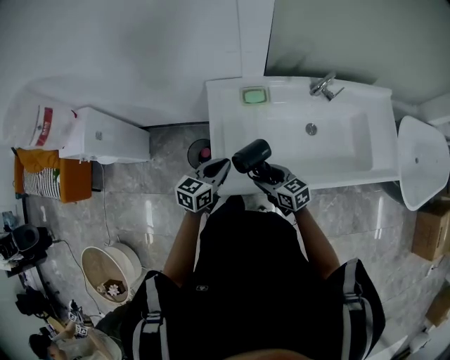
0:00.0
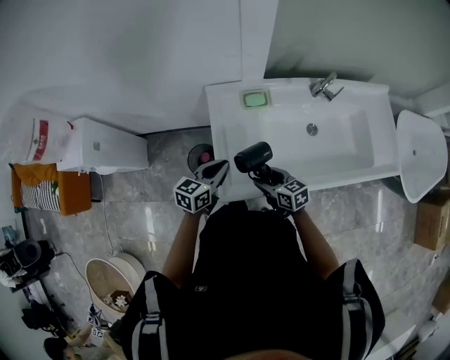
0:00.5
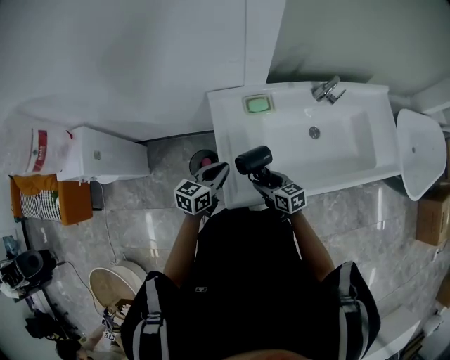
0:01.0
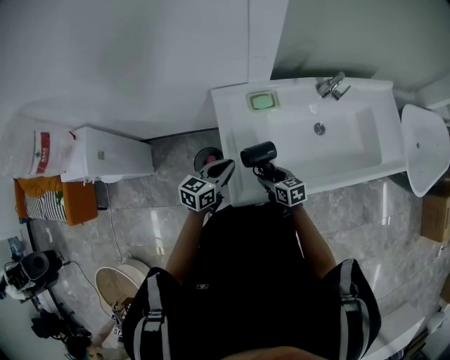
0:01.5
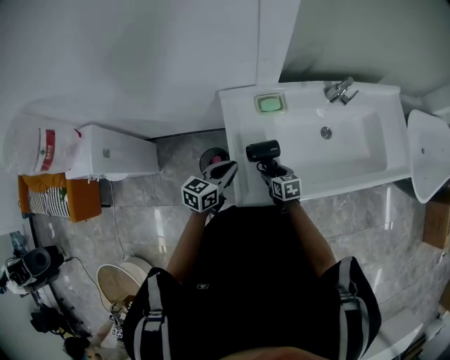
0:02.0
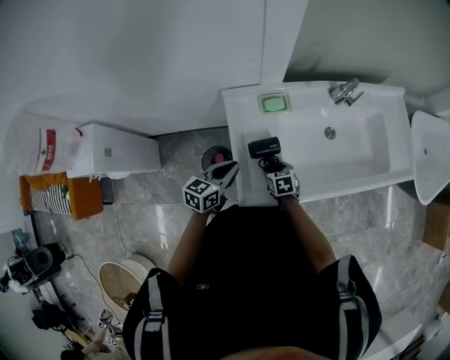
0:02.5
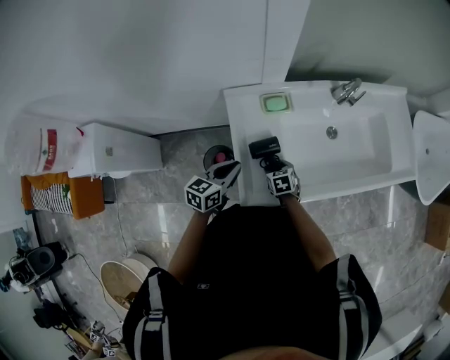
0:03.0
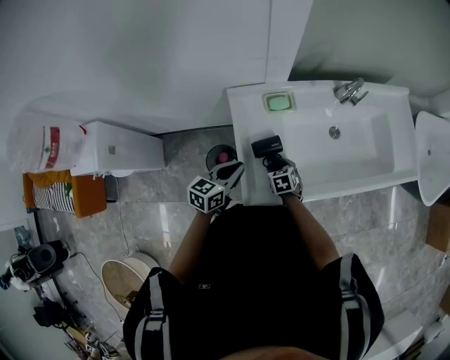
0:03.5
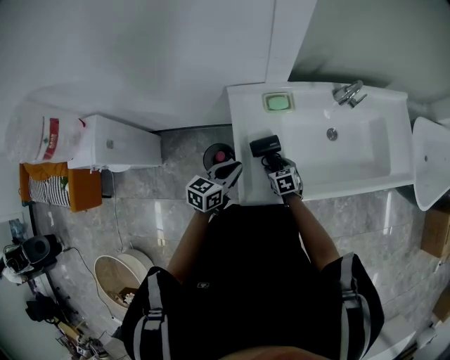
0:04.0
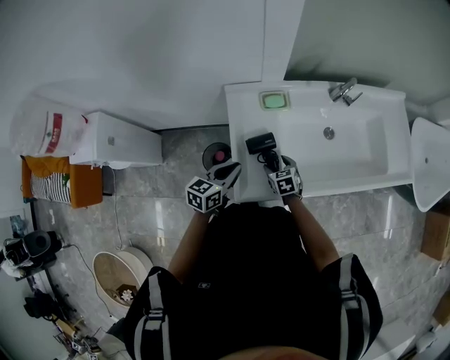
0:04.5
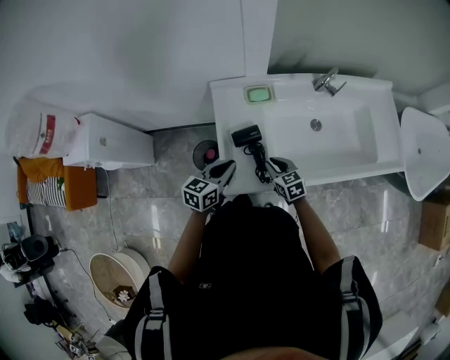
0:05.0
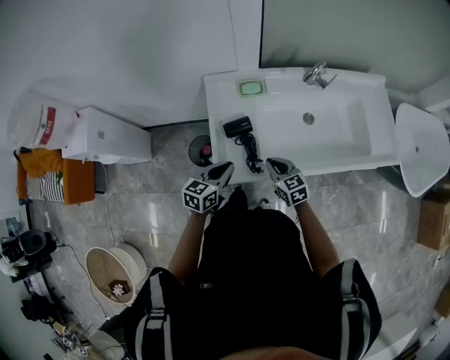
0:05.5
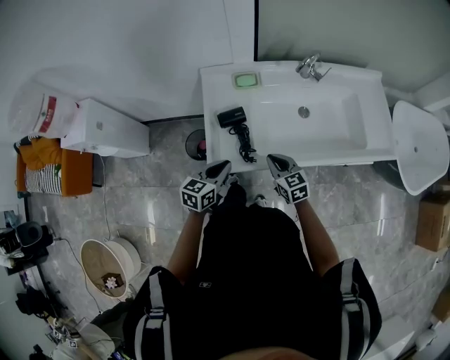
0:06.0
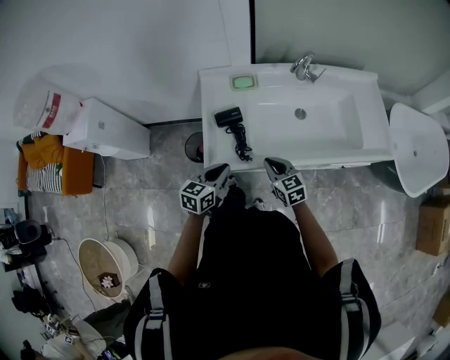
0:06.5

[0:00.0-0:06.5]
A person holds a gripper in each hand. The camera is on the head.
0:00.0 to 0:02.0: The right gripper is displaced downward and forward by approximately 15 cm, and rotates about 30 degrees. The left gripper shifts approximately 5 cm to the left.
0:04.5 to 0:06.5: The left gripper moves backward and to the right, about 15 cm, while the right gripper travels upward, backward and to the right by about 20 cm, swivels roughly 20 degrees, and closes.

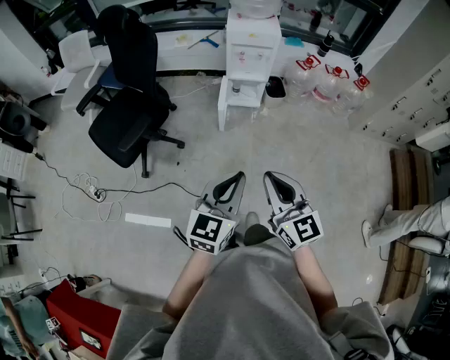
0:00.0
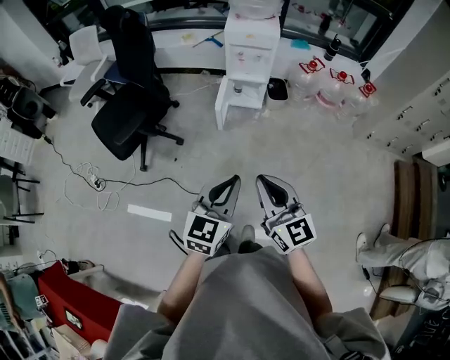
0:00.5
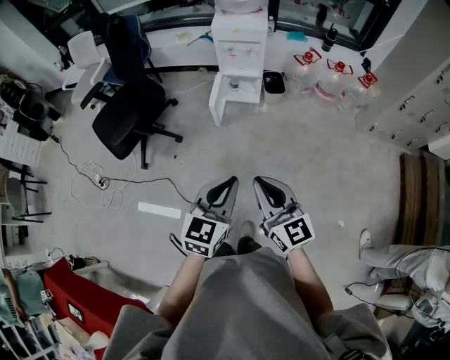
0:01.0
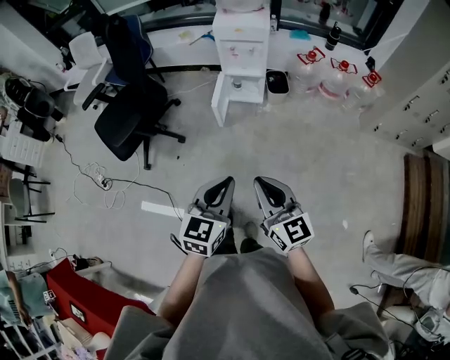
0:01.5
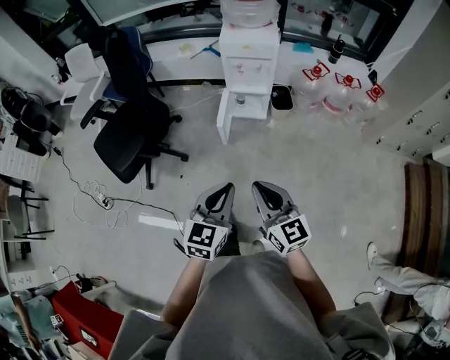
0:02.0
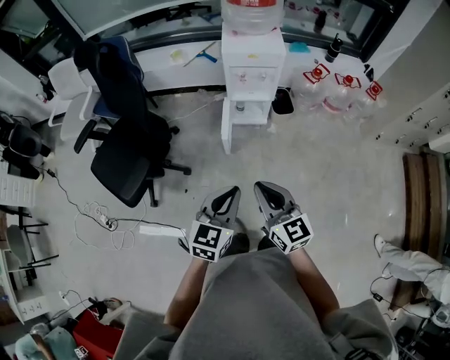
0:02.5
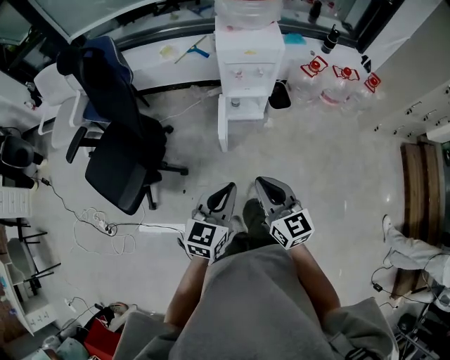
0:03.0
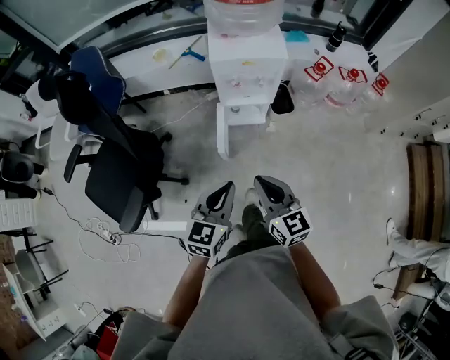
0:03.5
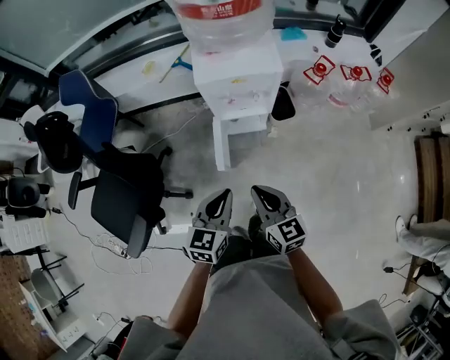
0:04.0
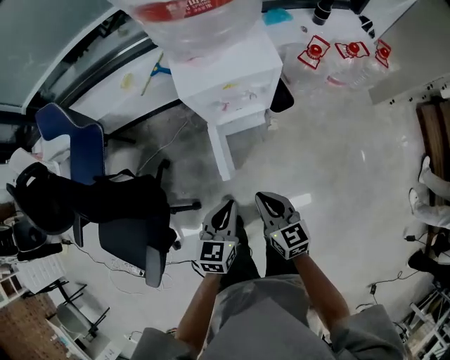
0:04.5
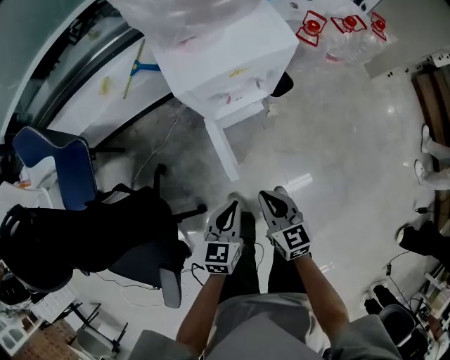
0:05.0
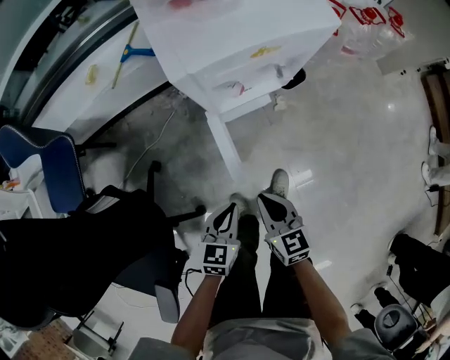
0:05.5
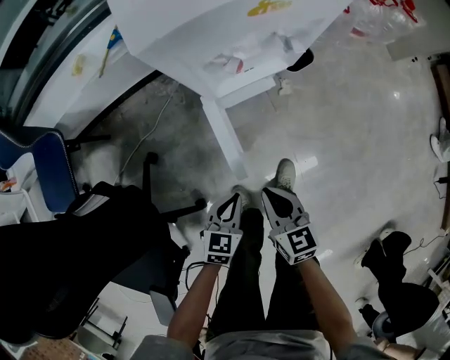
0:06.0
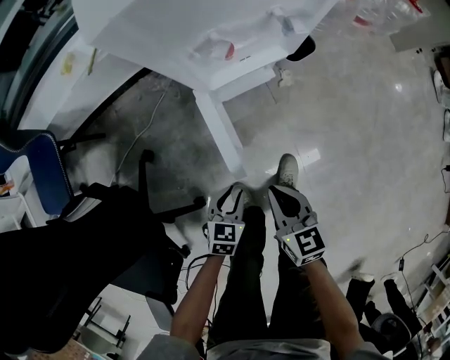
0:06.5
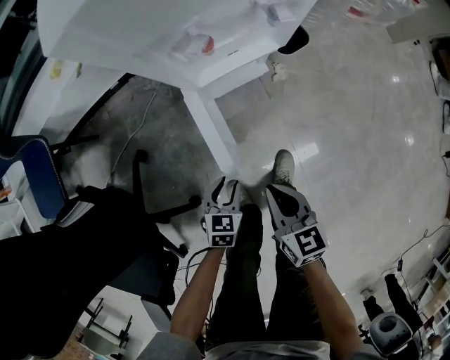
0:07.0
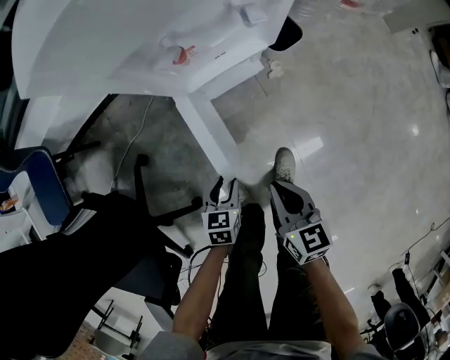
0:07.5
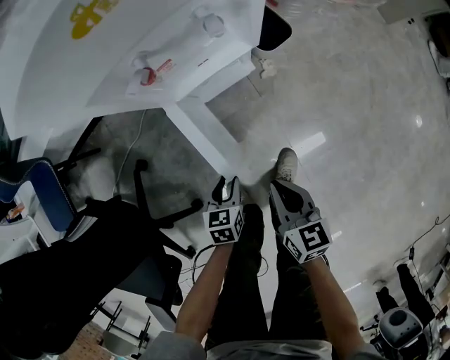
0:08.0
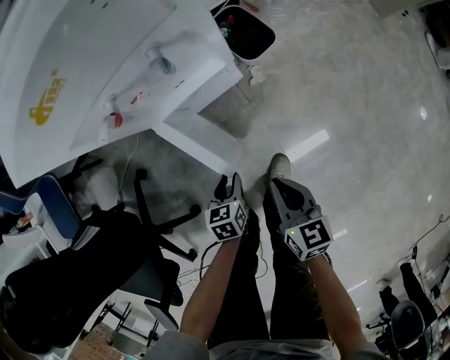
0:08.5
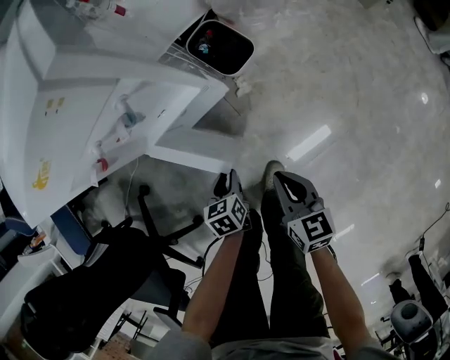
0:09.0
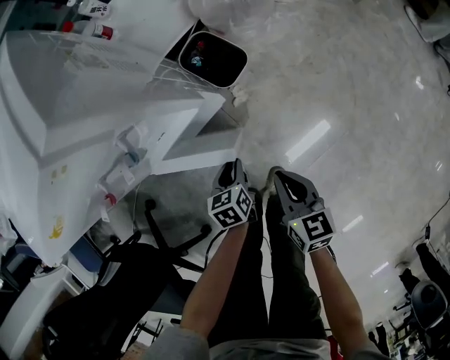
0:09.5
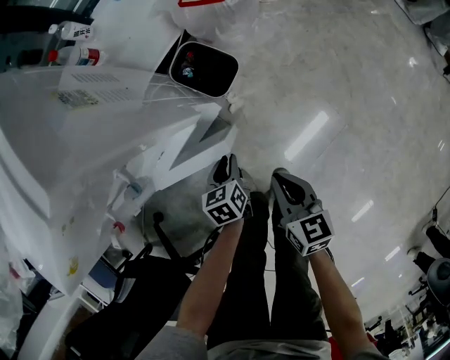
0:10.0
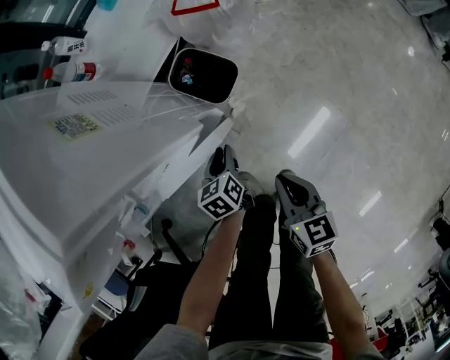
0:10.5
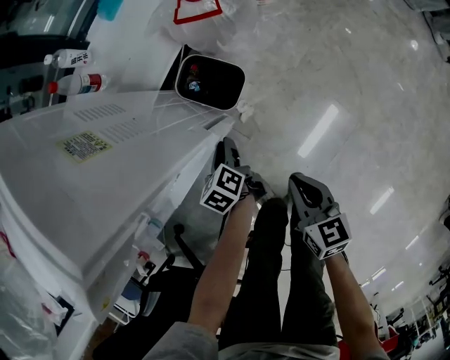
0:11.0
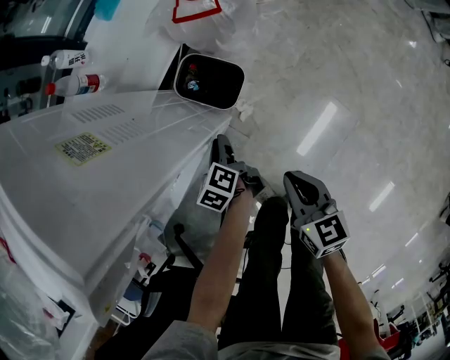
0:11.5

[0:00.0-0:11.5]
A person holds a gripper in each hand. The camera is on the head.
0:00.0 to 0:02.0: Both grippers move forward and to the right, approximately 15 cm.
0:02.0 to 0:04.0: The grippers both shift forward by about 35 cm.
0:04.0 to 0:06.0: The grippers both shift downward by about 35 cm. The right gripper swivels some 20 degrees, while the left gripper changes its angle by about 30 degrees.
0:06.0 to 0:07.5: The right gripper goes about 5 cm to the right. Meanwhile the left gripper is displaced downward by some 10 cm, and opens.
0:07.5 to 0:09.5: The two grippers go some 25 cm to the right and forward.
0:09.5 to 0:11.5: The left gripper moves forward, some 15 cm, and swivels about 30 degrees; the right gripper moves forward, approximately 5 cm.

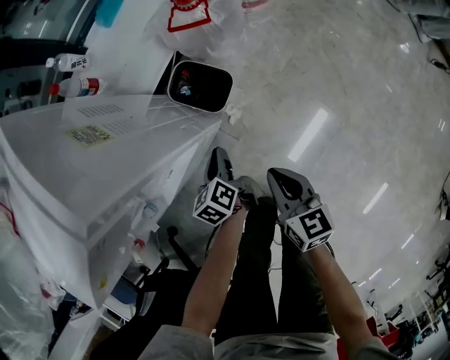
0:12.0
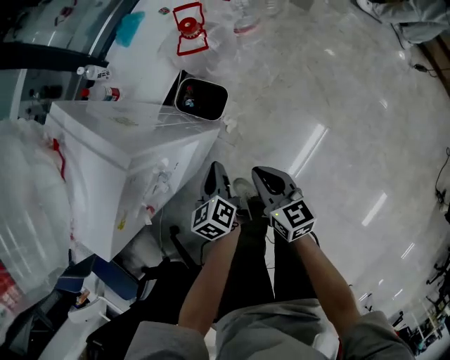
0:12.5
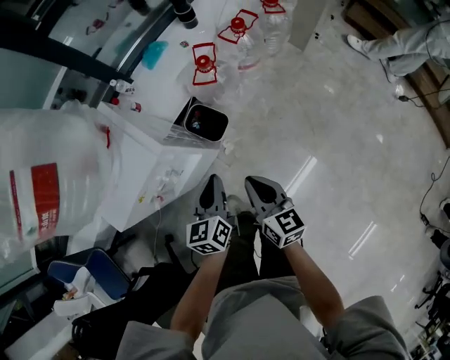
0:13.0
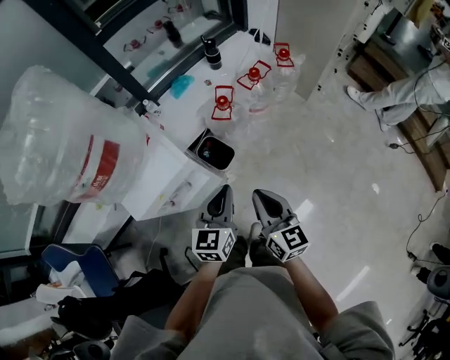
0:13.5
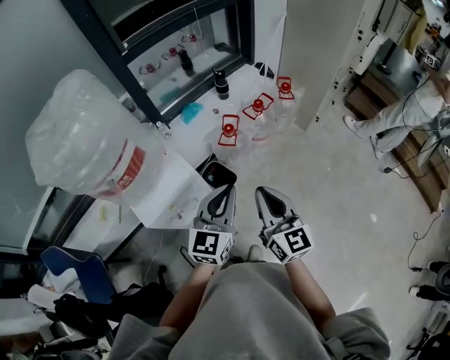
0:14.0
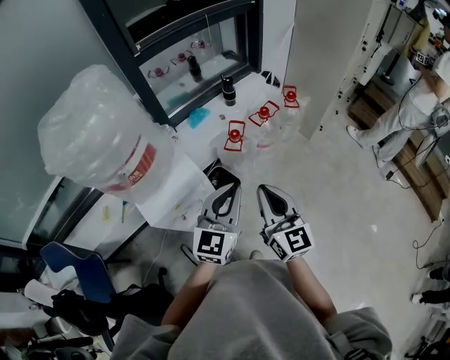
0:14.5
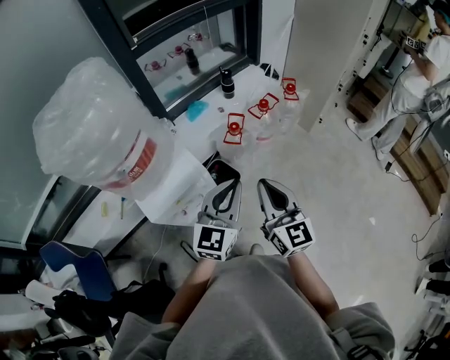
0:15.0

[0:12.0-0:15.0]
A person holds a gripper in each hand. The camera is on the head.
0:12.0 to 0:13.5: Both grippers move upward, approximately 50 cm. The right gripper turns by some 20 degrees; the left gripper changes its angle by roughly 50 degrees.
0:13.5 to 0:15.0: The grippers both shift upward by about 15 cm. The left gripper swivels some 20 degrees.

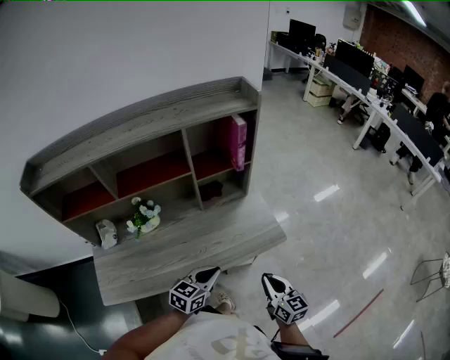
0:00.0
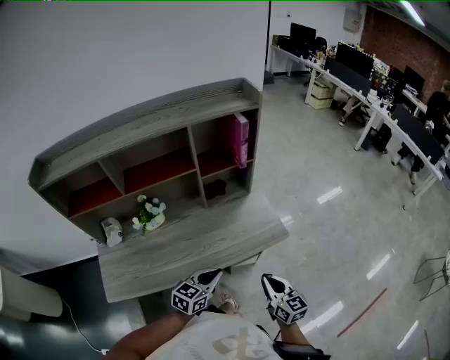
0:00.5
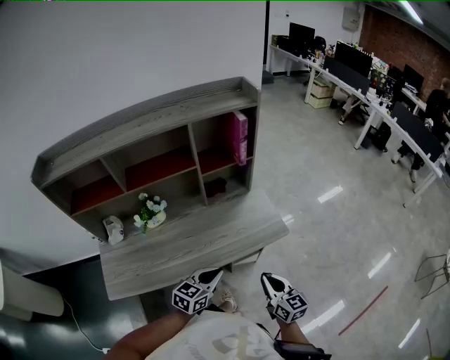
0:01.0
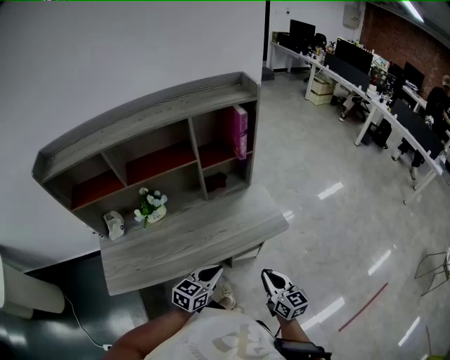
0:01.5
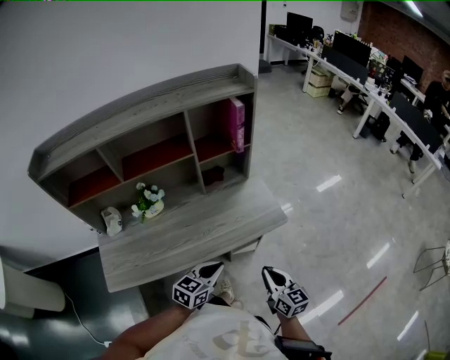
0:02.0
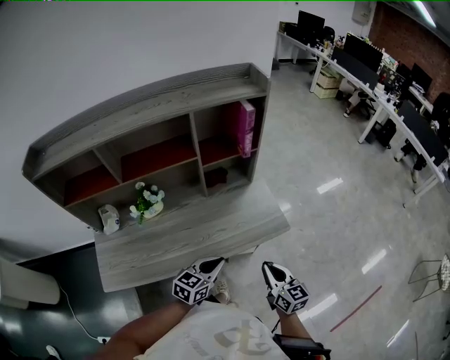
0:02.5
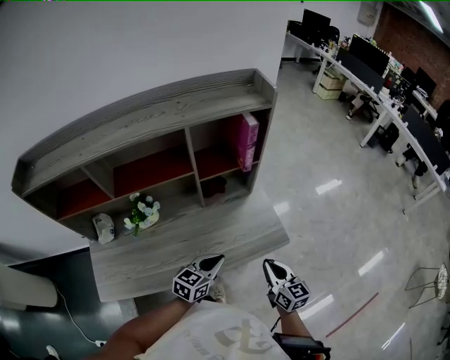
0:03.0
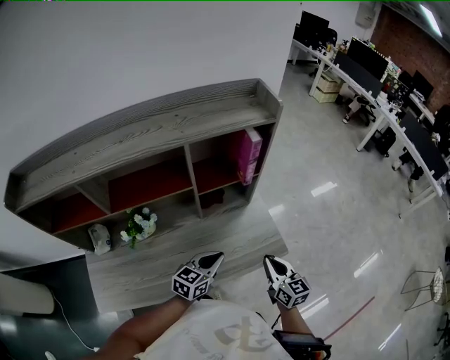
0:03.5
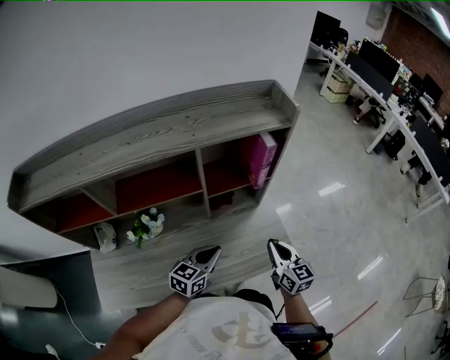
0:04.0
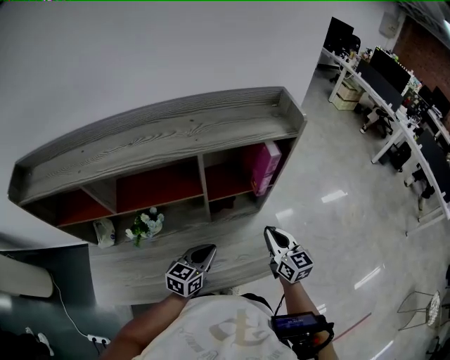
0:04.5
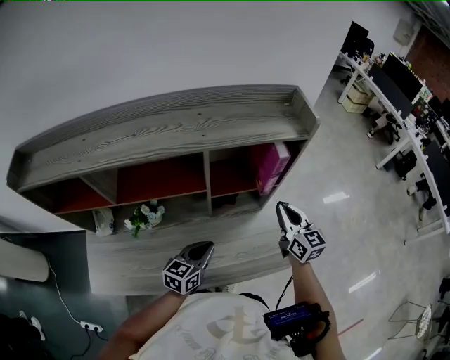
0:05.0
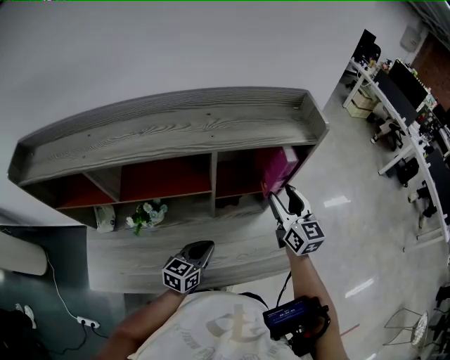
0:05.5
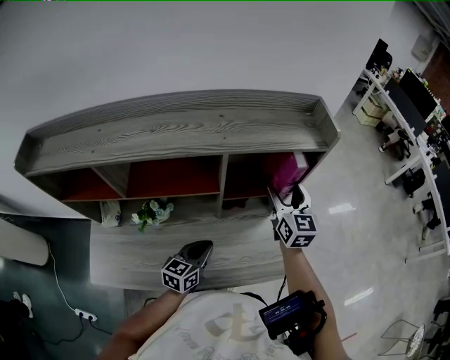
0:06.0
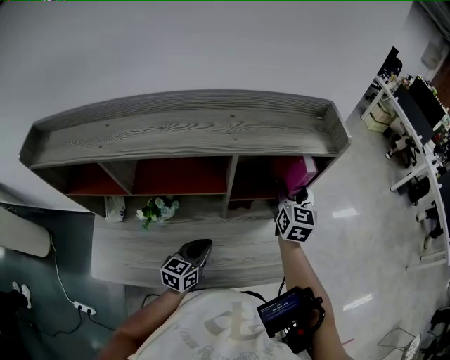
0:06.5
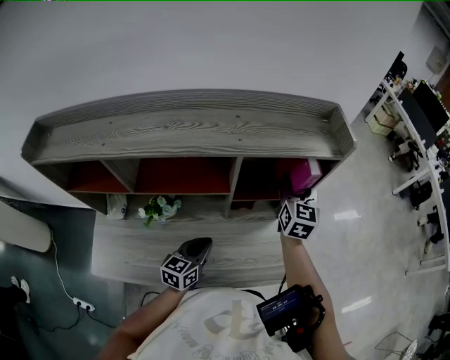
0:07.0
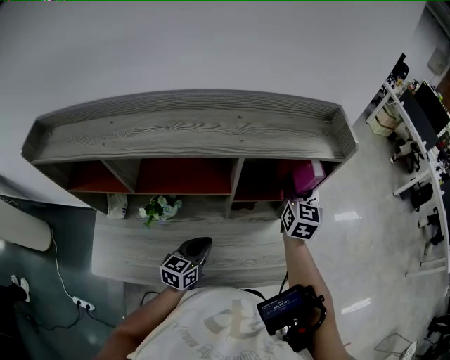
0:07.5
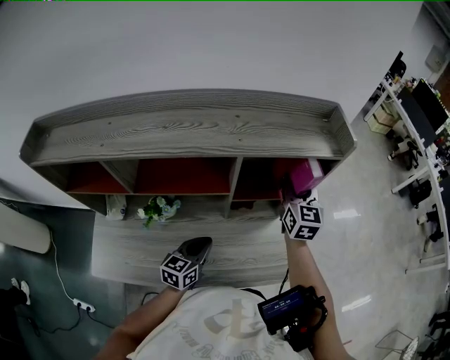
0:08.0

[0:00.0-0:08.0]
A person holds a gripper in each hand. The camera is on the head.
0:00.0 to 0:02.0: Both grippers travel together backward, approximately 5 cm.
0:02.0 to 0:04.0: The grippers both shift forward by approximately 25 cm.
0:04.0 to 0:06.0: The left gripper travels to the left by some 5 cm. The right gripper goes some 25 cm forward and upward, and opens.
0:06.0 to 0:08.0: The right gripper closes its fingers.
